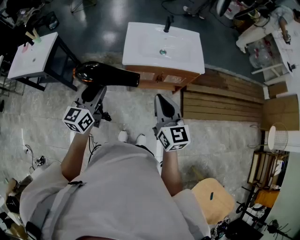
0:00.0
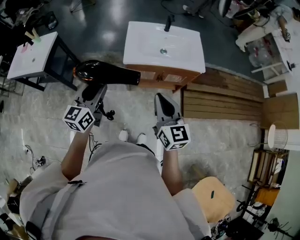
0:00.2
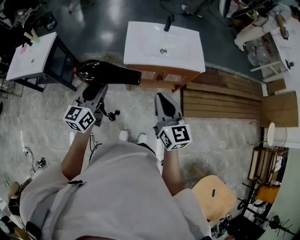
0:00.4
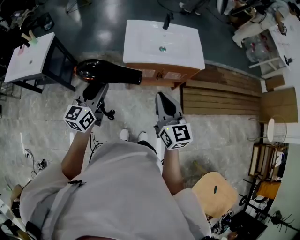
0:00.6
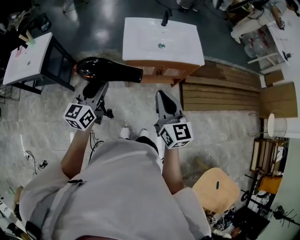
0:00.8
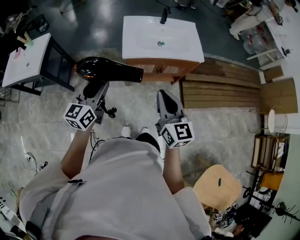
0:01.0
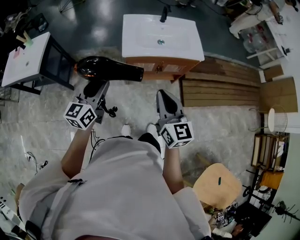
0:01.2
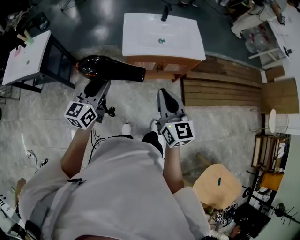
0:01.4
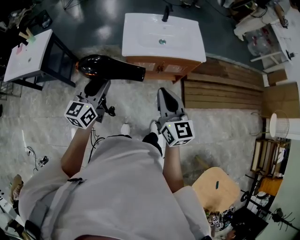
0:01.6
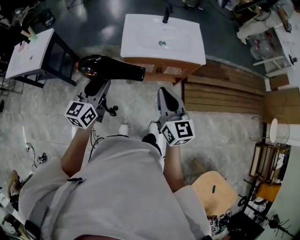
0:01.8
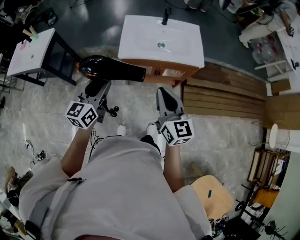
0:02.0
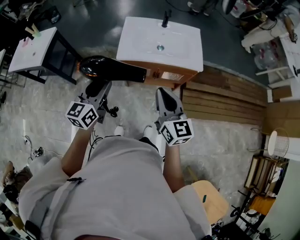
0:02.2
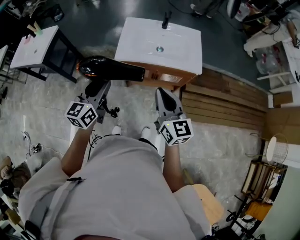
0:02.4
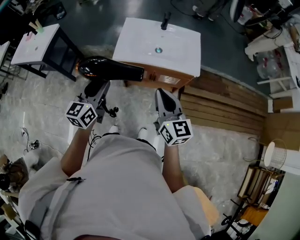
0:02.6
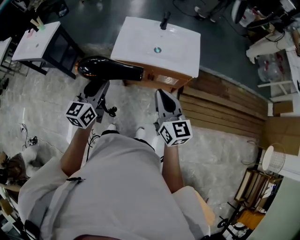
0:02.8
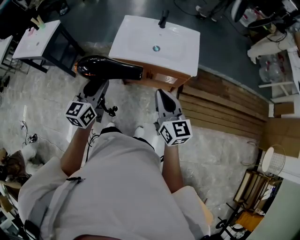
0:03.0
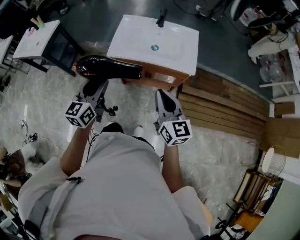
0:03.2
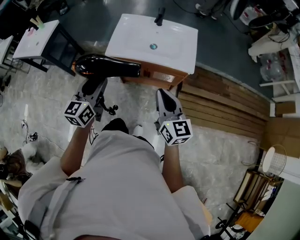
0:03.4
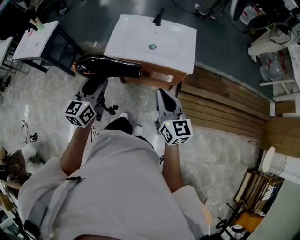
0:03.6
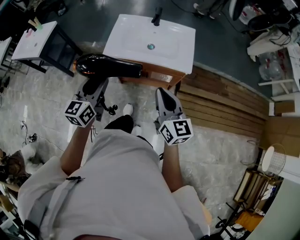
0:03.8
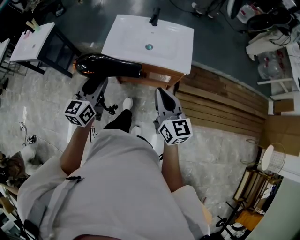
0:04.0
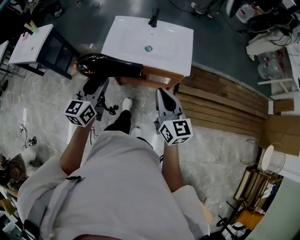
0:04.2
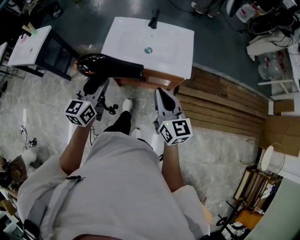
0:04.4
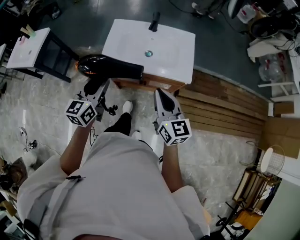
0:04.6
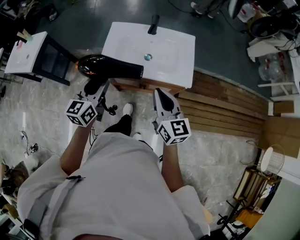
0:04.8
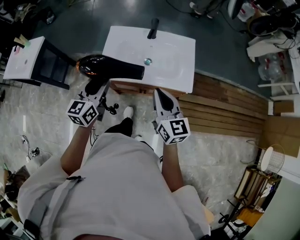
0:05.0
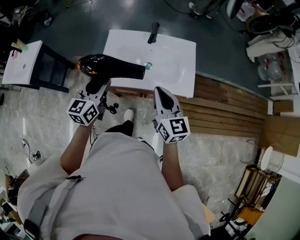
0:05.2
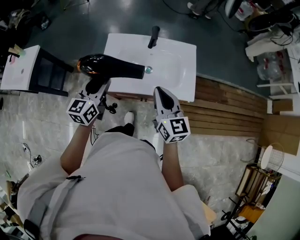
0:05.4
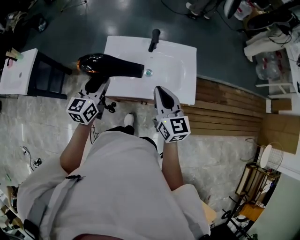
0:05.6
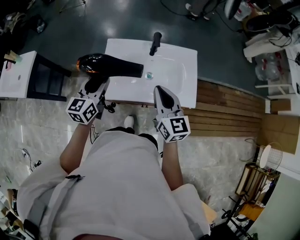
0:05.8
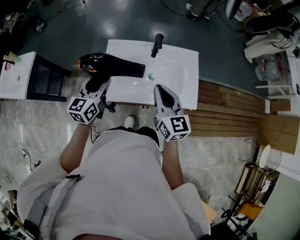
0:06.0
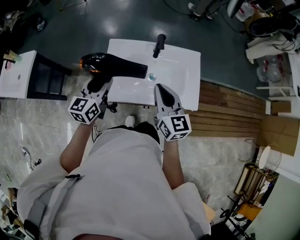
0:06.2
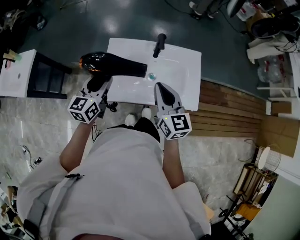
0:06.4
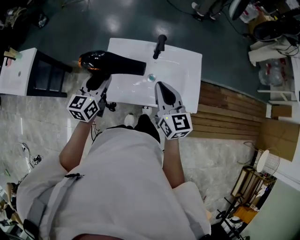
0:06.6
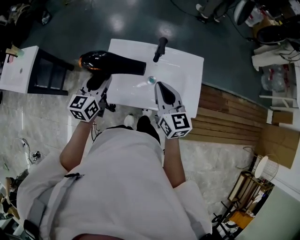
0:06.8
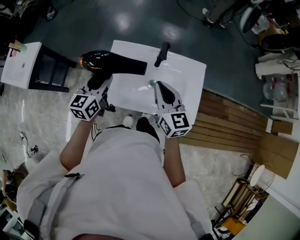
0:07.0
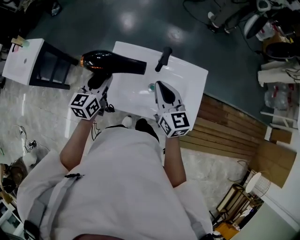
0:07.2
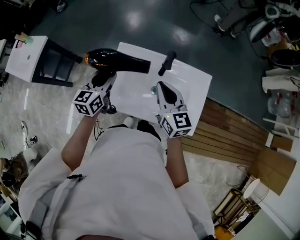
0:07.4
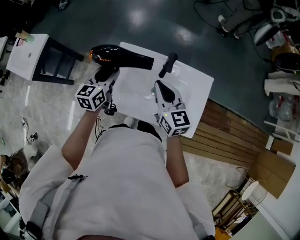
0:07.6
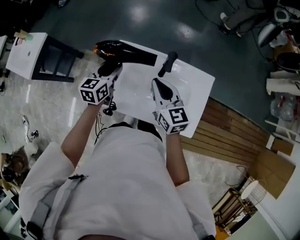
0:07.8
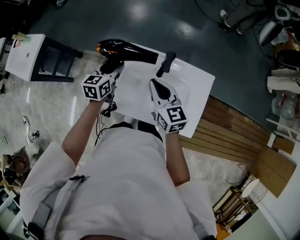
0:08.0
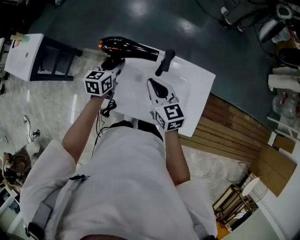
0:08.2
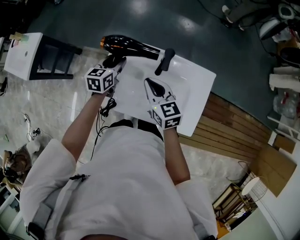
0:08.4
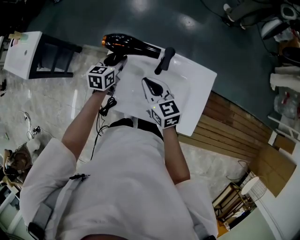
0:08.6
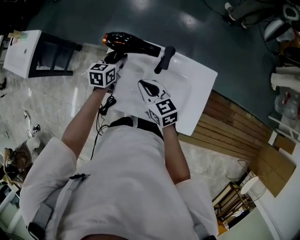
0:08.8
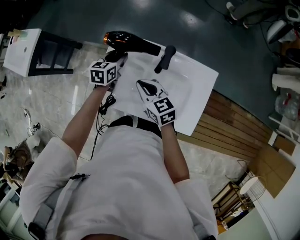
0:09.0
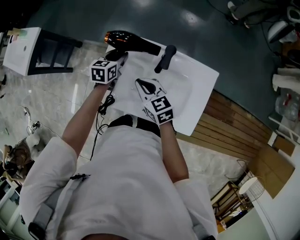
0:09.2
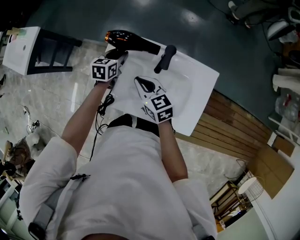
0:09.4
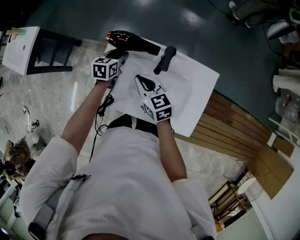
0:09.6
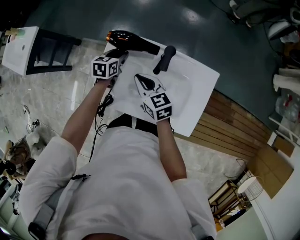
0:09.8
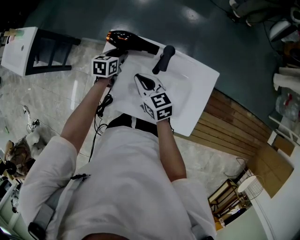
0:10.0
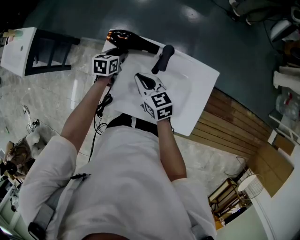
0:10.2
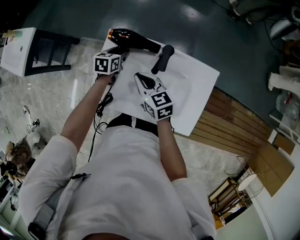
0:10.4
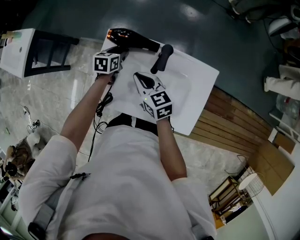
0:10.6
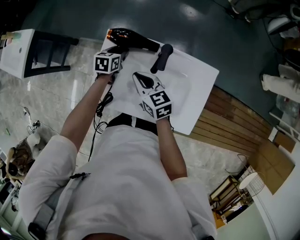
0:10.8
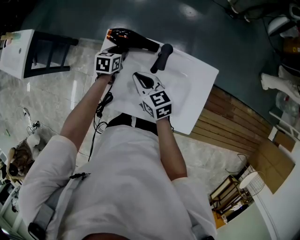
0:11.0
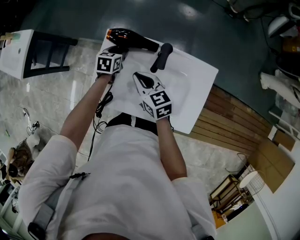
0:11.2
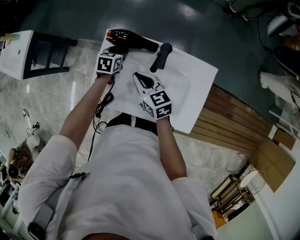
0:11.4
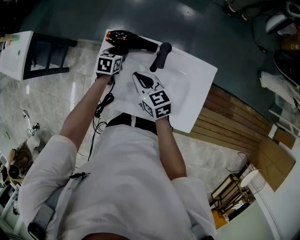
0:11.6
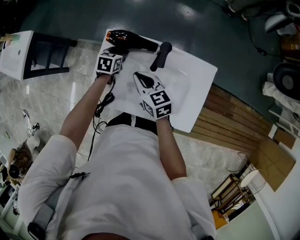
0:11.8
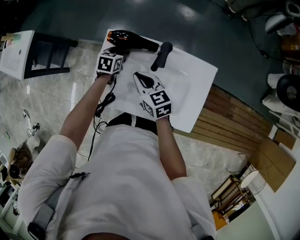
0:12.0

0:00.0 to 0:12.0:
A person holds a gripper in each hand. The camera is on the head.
0:00.0 to 0:01.6: The grippers make only small movements.
0:01.6 to 0:03.0: Both grippers travel together to the right, some 15 cm.
0:03.0 to 0:04.4: The right gripper travels forward by about 5 cm. The left gripper travels forward and to the right by approximately 10 cm.
0:04.4 to 0:06.0: The grippers both shift forward by approximately 25 cm.
0:06.0 to 0:07.6: The left gripper heads forward and downward, covering some 10 cm. Meanwhile the right gripper travels forward by about 15 cm.
0:07.6 to 0:09.0: The right gripper shifts roughly 10 cm downward, and changes its angle by about 20 degrees; the left gripper moves downward and forward, some 15 cm.
0:09.0 to 0:10.4: The left gripper travels downward by about 5 cm.
0:10.4 to 0:12.0: The grippers stay close to where they were, moving slightly.

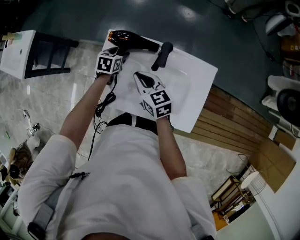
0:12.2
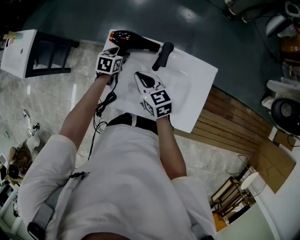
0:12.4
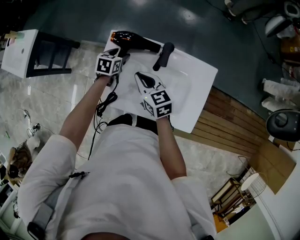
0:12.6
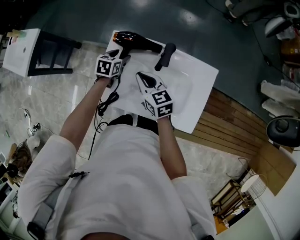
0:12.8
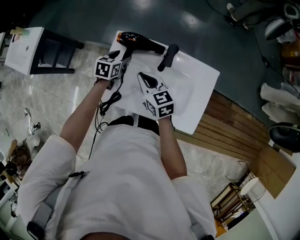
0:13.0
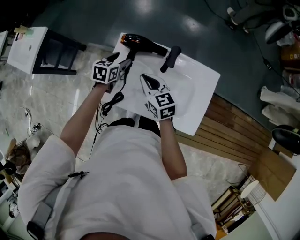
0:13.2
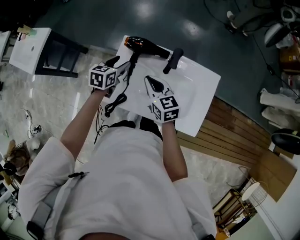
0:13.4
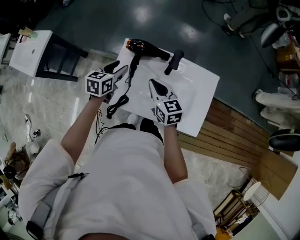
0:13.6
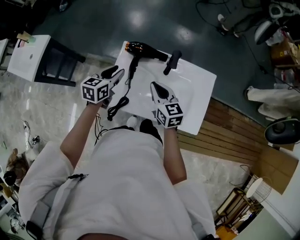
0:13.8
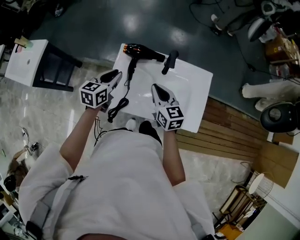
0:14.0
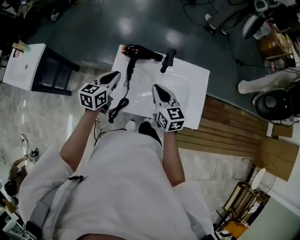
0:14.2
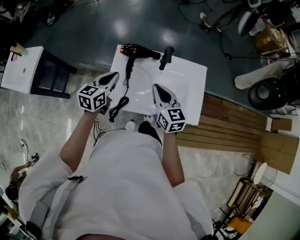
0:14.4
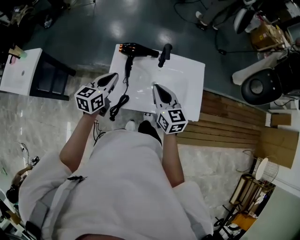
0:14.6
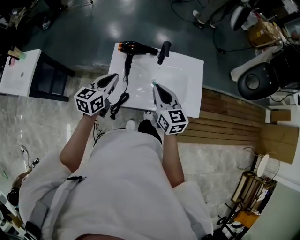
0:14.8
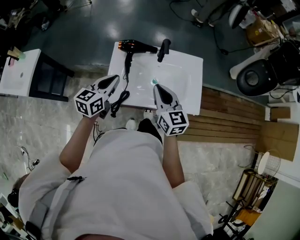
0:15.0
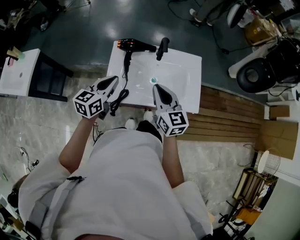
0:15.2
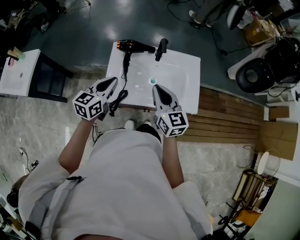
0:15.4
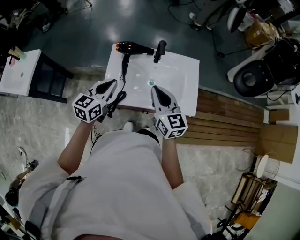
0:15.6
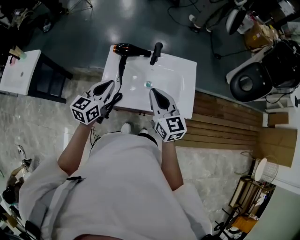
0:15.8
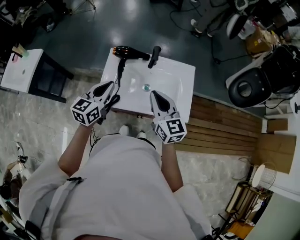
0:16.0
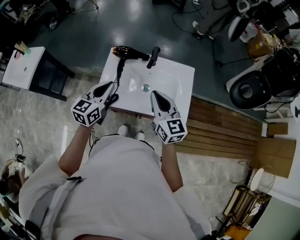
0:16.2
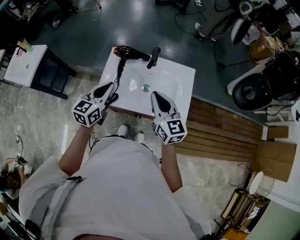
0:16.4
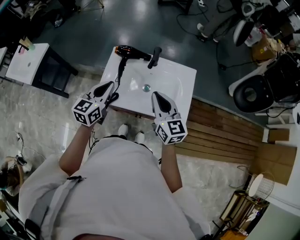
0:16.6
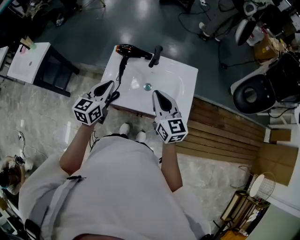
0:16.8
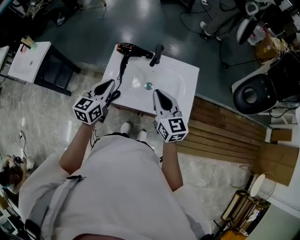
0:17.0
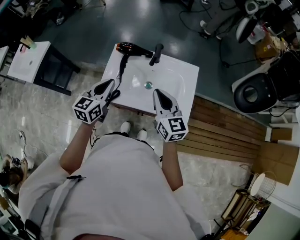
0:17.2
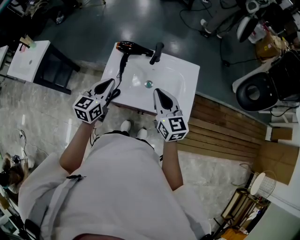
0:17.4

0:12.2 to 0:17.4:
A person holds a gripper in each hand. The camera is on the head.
0:12.2 to 0:14.0: The left gripper moves upward and backward, some 20 cm, turns by approximately 30 degrees, and closes; the right gripper heads upward and backward, covering approximately 10 cm.
0:14.0 to 0:15.6: Both grippers travel together backward and upward, roughly 10 cm.
0:15.6 to 0:17.4: The right gripper goes about 5 cm to the right.

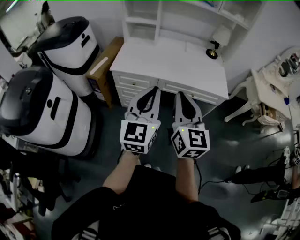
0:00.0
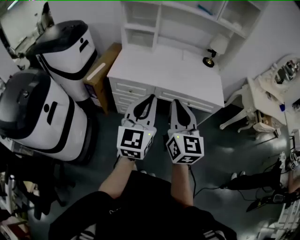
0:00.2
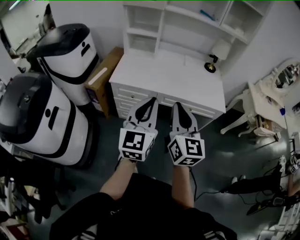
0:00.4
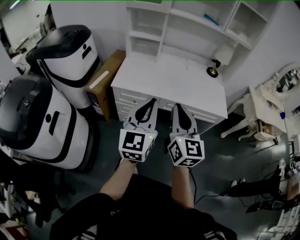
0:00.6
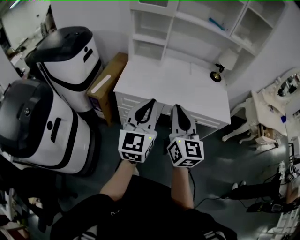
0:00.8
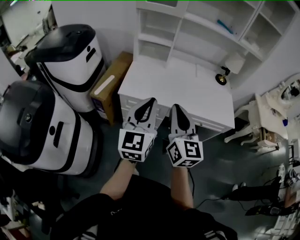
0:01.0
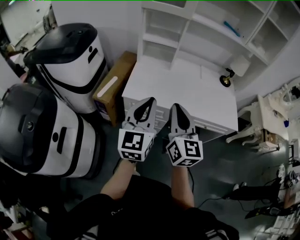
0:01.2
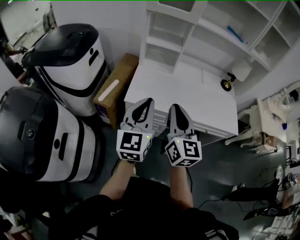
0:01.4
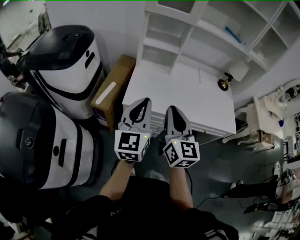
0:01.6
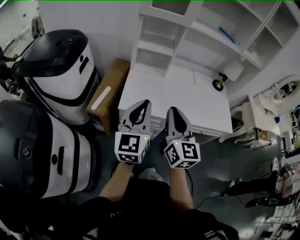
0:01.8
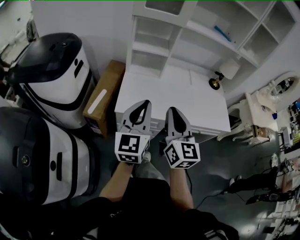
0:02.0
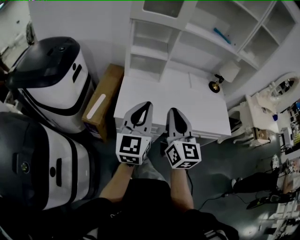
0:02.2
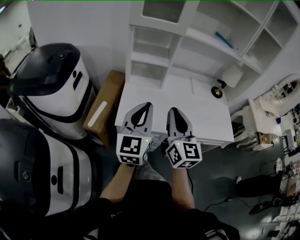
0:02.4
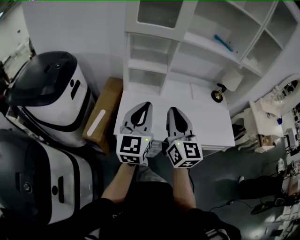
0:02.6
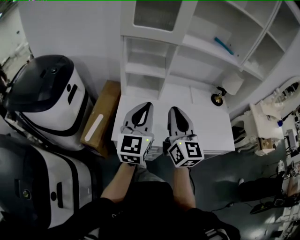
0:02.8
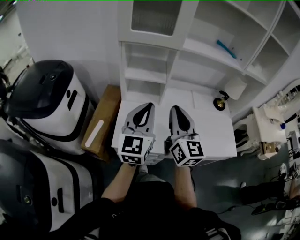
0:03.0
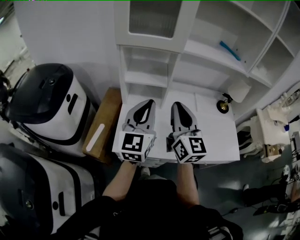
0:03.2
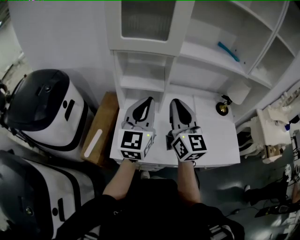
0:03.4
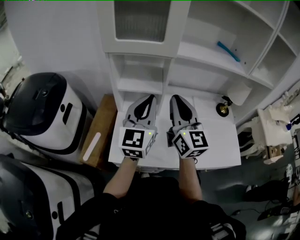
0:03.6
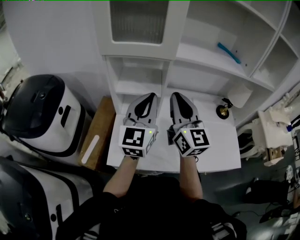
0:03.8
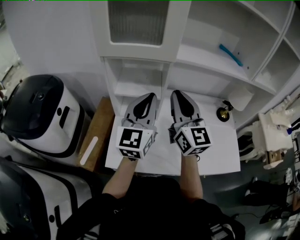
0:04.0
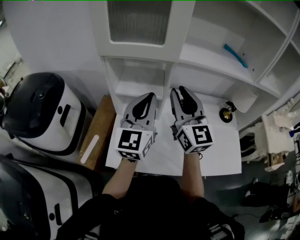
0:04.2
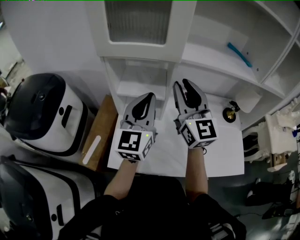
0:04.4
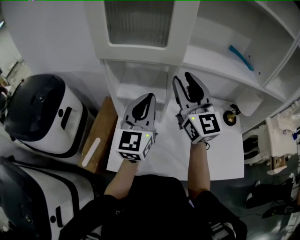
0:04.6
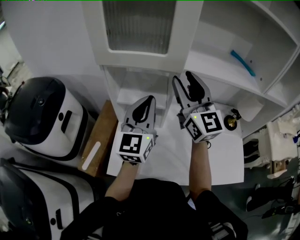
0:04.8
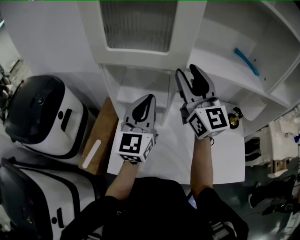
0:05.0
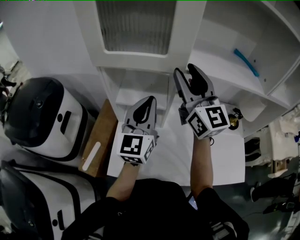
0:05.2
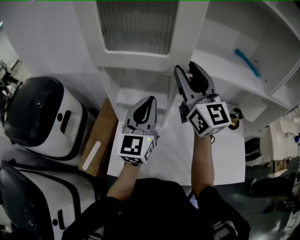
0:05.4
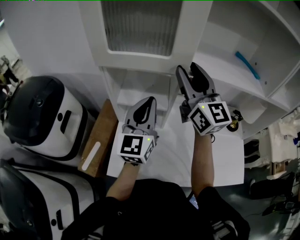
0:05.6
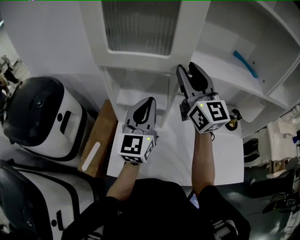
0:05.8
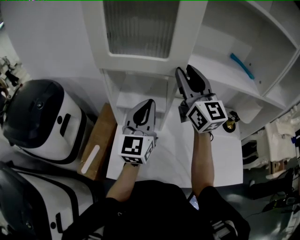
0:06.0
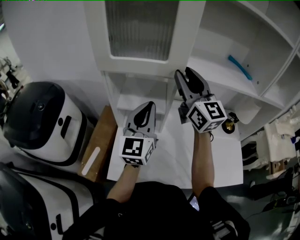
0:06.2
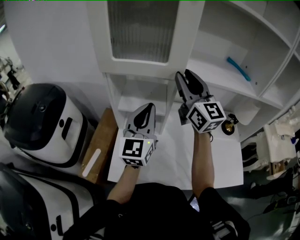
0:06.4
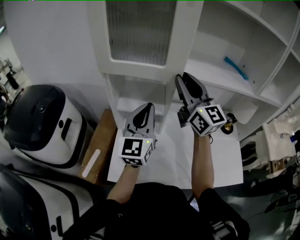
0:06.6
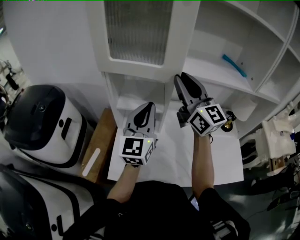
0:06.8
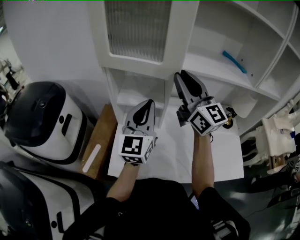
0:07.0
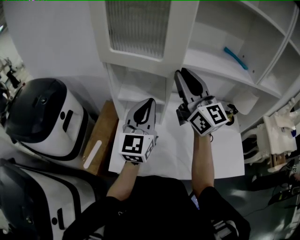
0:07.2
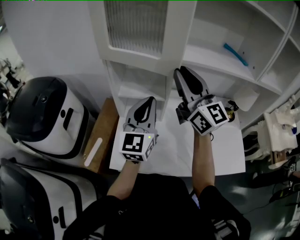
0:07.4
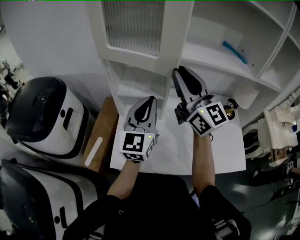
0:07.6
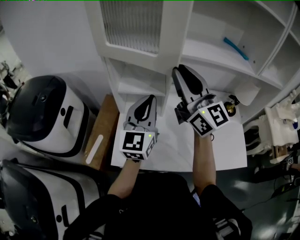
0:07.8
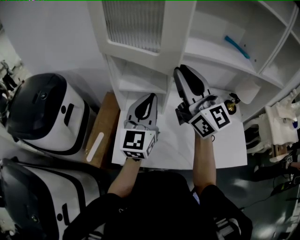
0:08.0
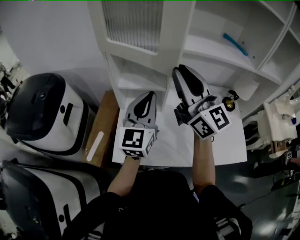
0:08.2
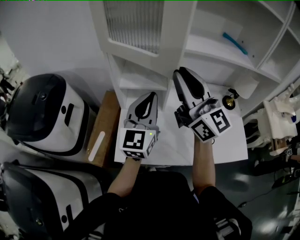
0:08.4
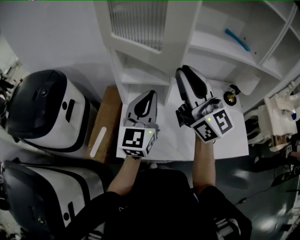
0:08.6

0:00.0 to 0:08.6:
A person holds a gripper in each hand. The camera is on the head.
0:00.0 to 0:01.4: The two grippers go roughly 30 cm to the left and forward.
0:01.4 to 0:02.8: Both grippers travel together forward, some 20 cm.
0:02.8 to 0:04.4: The two grippers go about 25 cm forward.
0:04.4 to 0:05.8: The left gripper is displaced forward by some 5 cm; the right gripper heads forward, covering some 10 cm.
0:05.8 to 0:07.2: The two grippers go roughly 5 cm backward.
0:07.2 to 0:08.6: The right gripper heads backward, covering some 10 cm.
